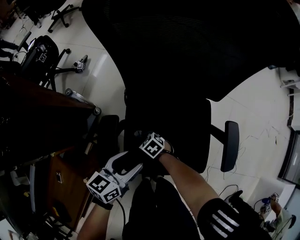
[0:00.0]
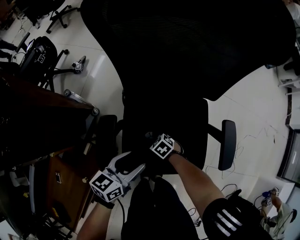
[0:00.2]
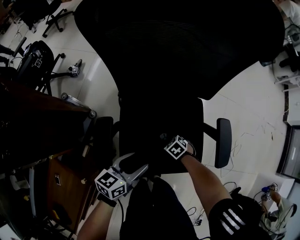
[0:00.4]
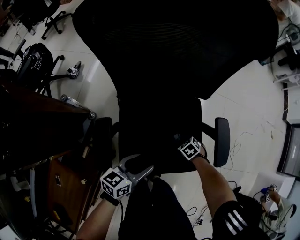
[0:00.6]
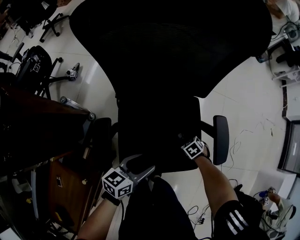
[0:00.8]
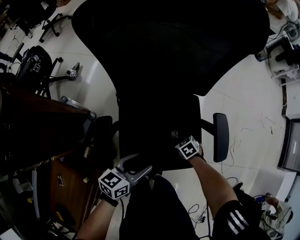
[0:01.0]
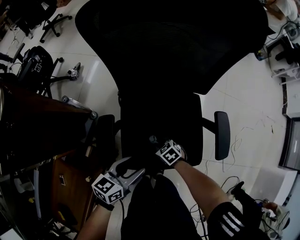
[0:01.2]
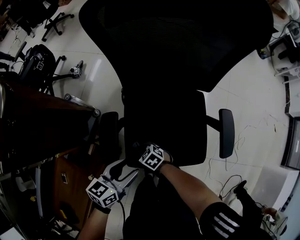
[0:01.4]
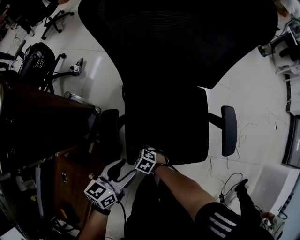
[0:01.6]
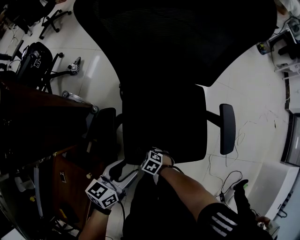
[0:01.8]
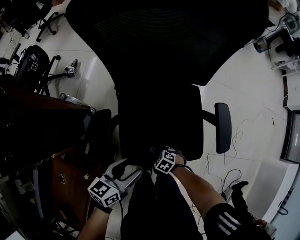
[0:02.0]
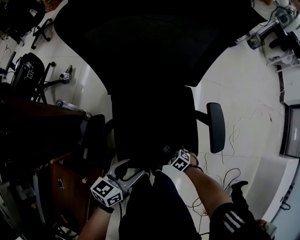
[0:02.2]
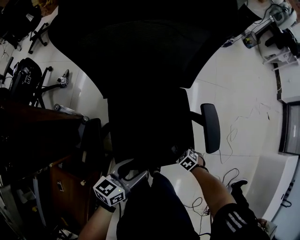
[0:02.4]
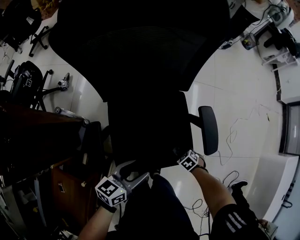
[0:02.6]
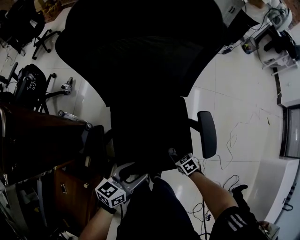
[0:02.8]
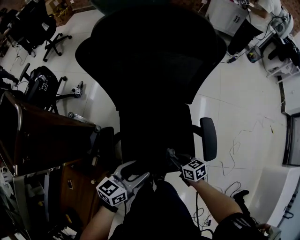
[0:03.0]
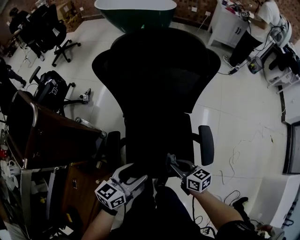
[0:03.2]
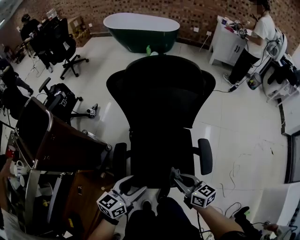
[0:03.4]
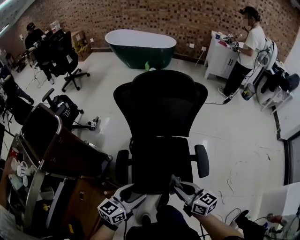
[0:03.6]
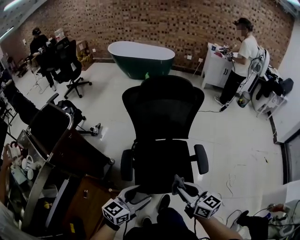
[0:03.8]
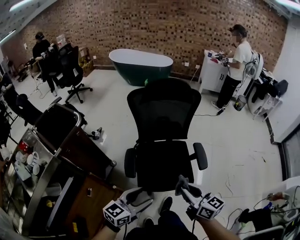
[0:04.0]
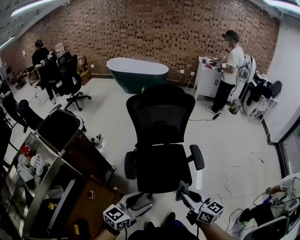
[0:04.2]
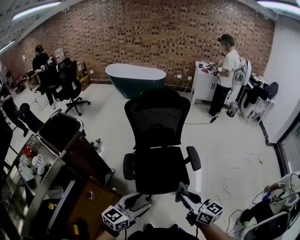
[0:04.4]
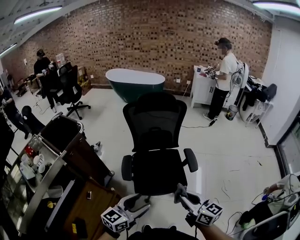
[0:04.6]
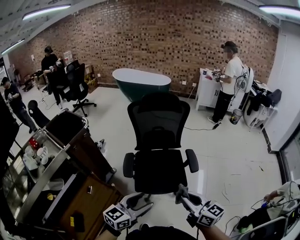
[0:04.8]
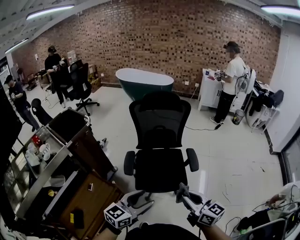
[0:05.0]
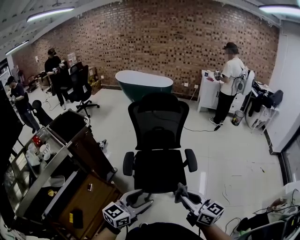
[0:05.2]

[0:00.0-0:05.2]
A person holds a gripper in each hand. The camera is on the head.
0:00.0 to 0:01.8: The left gripper moves roughly 10 cm.
0:01.8 to 0:03.4: The left gripper heads upward, covering some 20 cm, while the right gripper moves upward, roughly 40 cm, and tips its fingers upward by approximately 40 degrees.
0:03.4 to 0:05.2: Both grippers move backward and upward, approximately 40 cm. The left gripper swivels about 20 degrees. The right gripper changes its angle by about 20 degrees.

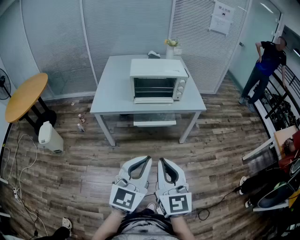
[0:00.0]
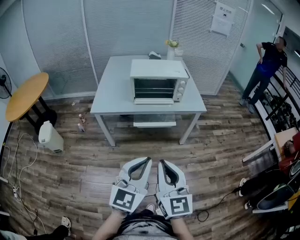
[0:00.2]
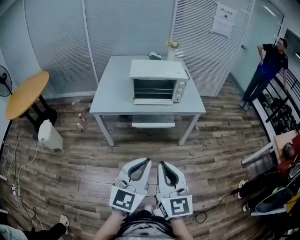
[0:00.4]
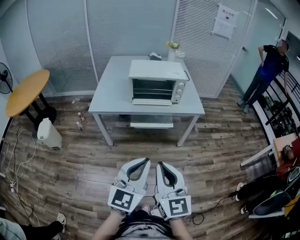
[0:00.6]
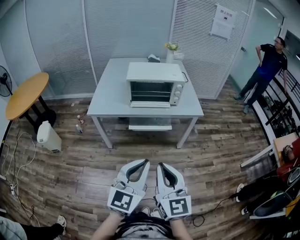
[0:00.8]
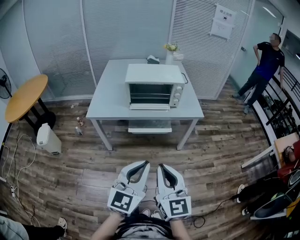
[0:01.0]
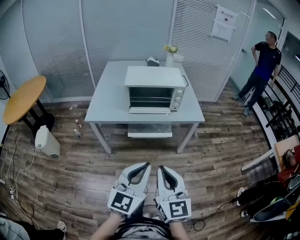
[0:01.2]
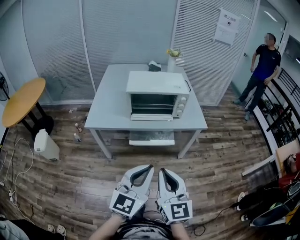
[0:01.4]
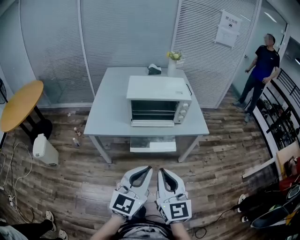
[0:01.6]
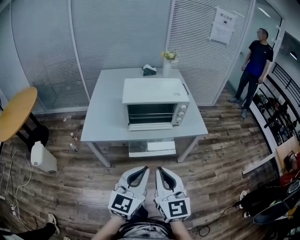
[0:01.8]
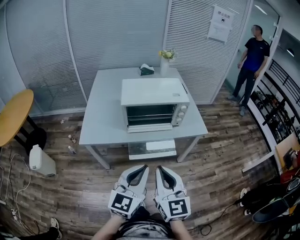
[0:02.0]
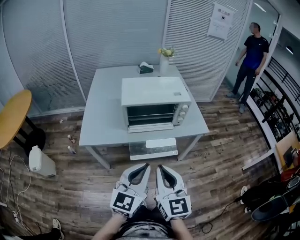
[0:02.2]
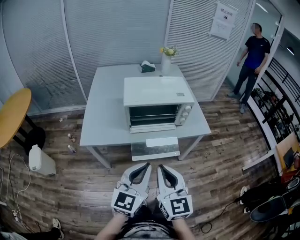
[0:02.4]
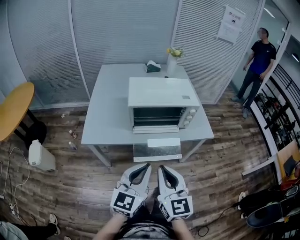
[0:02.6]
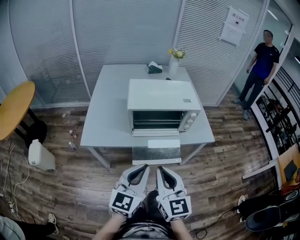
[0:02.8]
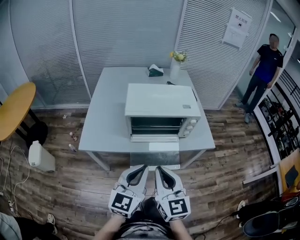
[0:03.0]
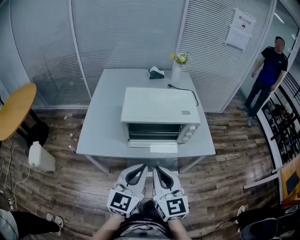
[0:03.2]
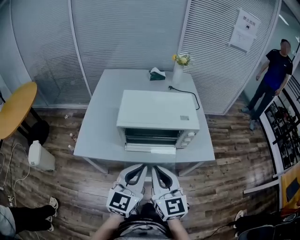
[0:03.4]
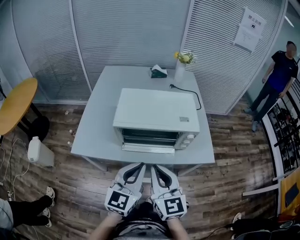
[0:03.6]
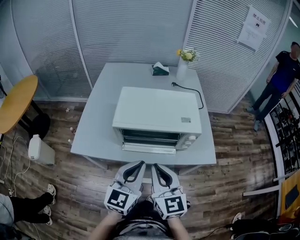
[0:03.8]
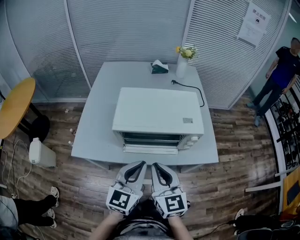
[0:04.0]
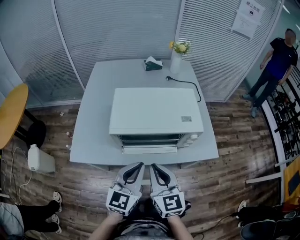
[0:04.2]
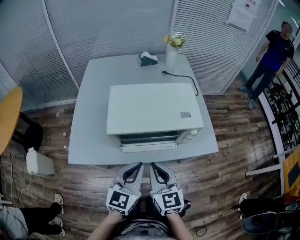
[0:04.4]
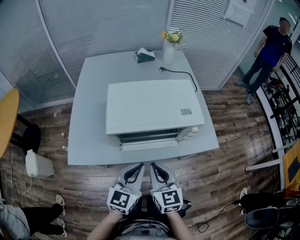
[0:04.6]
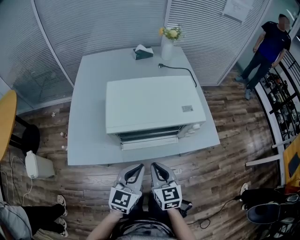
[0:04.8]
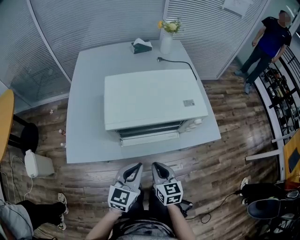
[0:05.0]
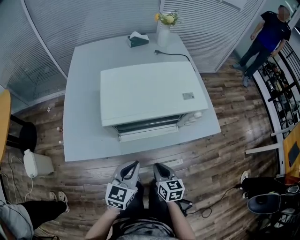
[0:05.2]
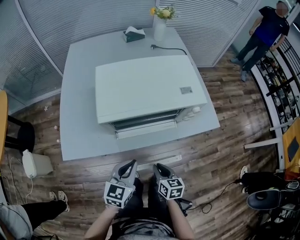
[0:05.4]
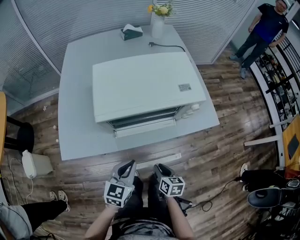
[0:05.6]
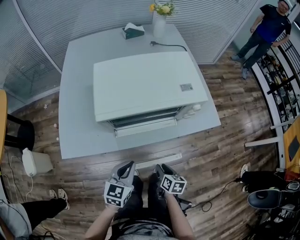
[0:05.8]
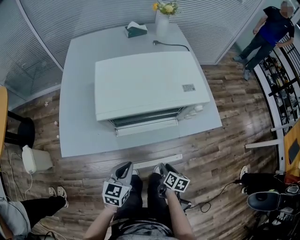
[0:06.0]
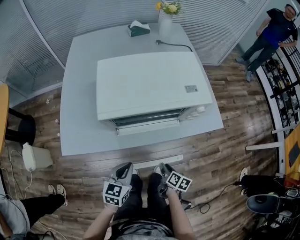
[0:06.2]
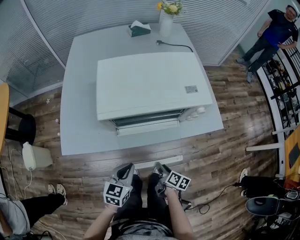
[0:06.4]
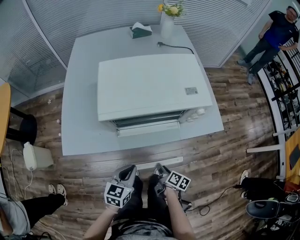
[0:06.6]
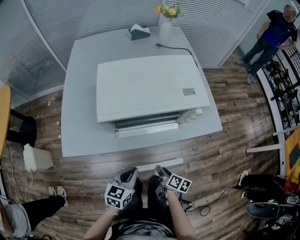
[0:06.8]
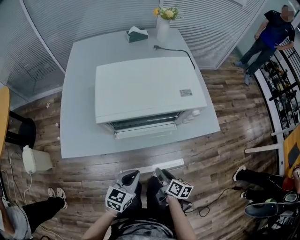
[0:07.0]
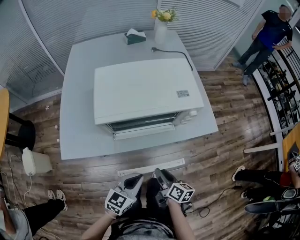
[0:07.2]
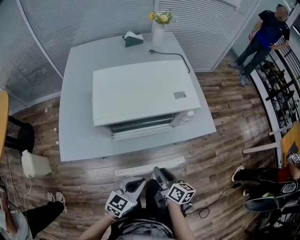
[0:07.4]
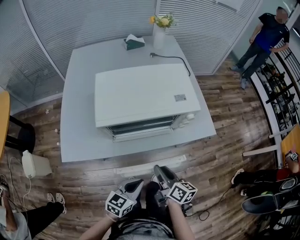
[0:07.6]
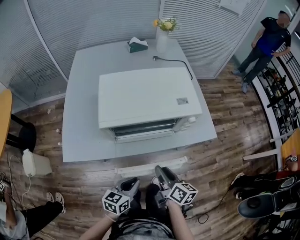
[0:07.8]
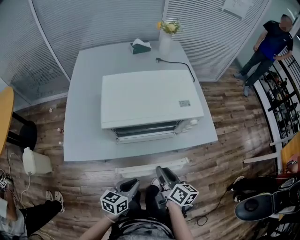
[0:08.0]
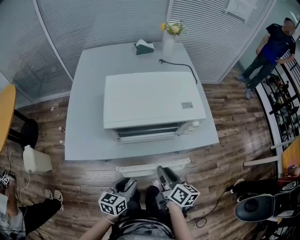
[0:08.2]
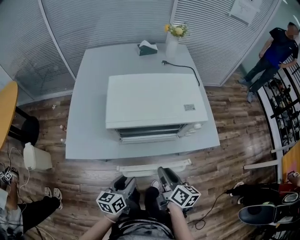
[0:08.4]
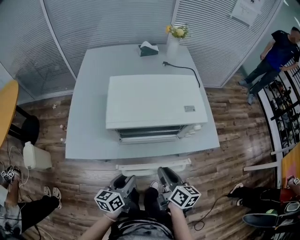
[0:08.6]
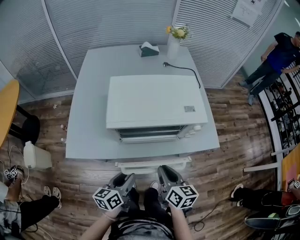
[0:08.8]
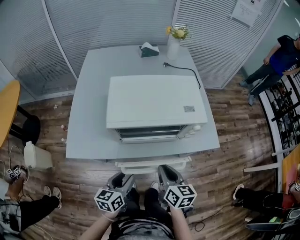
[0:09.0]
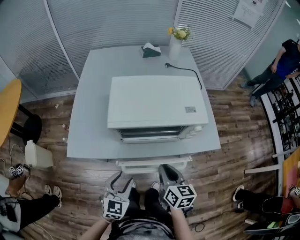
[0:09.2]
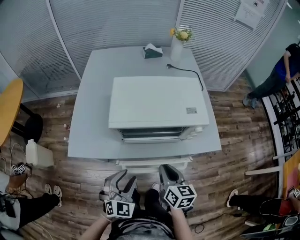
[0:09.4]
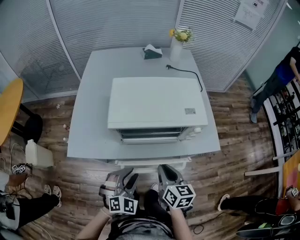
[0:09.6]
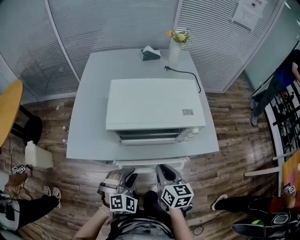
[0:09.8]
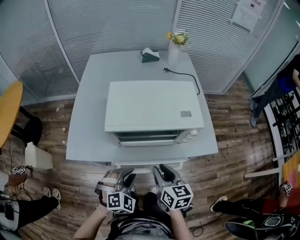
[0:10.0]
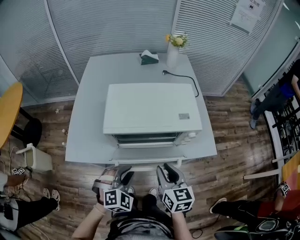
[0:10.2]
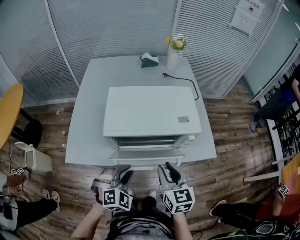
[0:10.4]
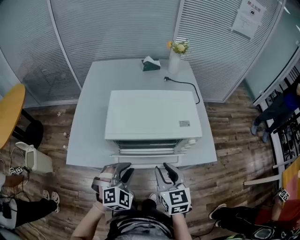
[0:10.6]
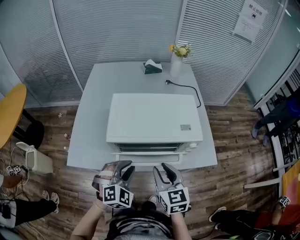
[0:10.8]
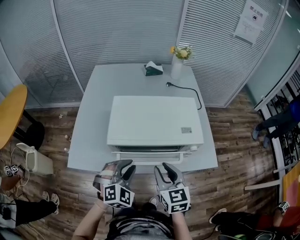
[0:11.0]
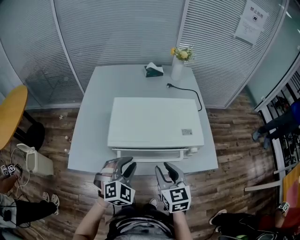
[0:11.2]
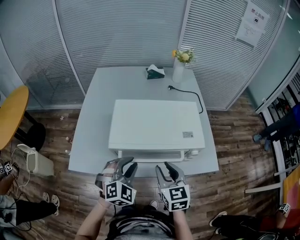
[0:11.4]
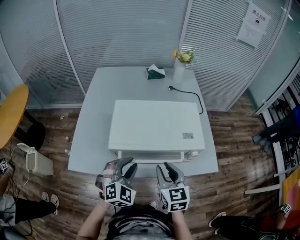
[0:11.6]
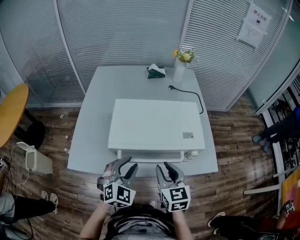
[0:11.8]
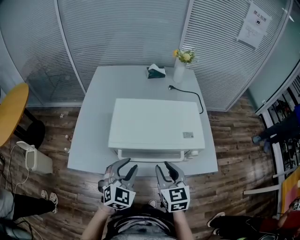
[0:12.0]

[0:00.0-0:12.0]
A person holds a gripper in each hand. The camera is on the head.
0:00.0 to 0:01.6: Both grippers travel together forward, about 15 cm.
0:01.6 to 0:03.0: The grippers both shift forward by about 15 cm.
0:03.0 to 0:04.4: The left gripper is displaced forward by about 15 cm; the right gripper is displaced forward and downward by approximately 20 cm.
0:04.4 to 0:06.0: The left gripper goes some 15 cm downward, and rotates some 20 degrees. The right gripper heads downward, covering about 30 cm, rolls clockwise, seen from behind, by approximately 50 degrees, and opens.
0:06.0 to 0:07.6: The left gripper goes roughly 10 cm to the right, while the right gripper goes some 20 cm upward, and changes its angle by roughly 30 degrees.
0:07.6 to 0:09.0: The right gripper ends up about 5 cm from where it was, and rotates some 20 degrees. The left gripper shifts roughly 10 cm to the left, changes its angle by approximately 30 degrees, and opens.
0:09.0 to 0:10.4: The right gripper is displaced upward by approximately 5 cm, and rotates about 20 degrees; the left gripper is displaced upward and forward by roughly 10 cm, and rolls clockwise, seen from behind, by roughly 70 degrees.
0:10.4 to 0:12.0: Both grippers move forward, some 5 cm. The left gripper rotates some 20 degrees.

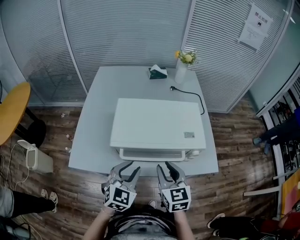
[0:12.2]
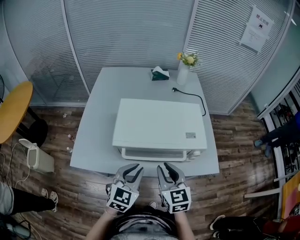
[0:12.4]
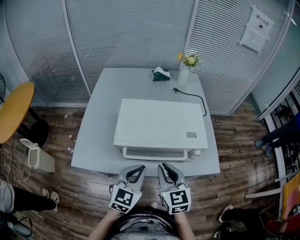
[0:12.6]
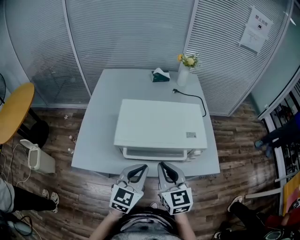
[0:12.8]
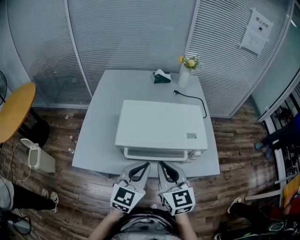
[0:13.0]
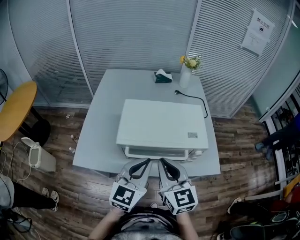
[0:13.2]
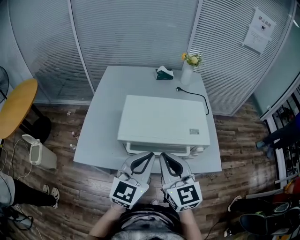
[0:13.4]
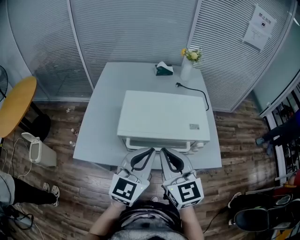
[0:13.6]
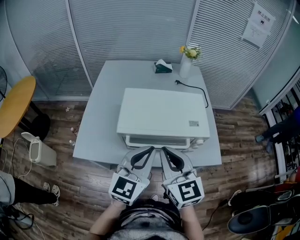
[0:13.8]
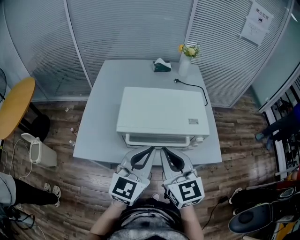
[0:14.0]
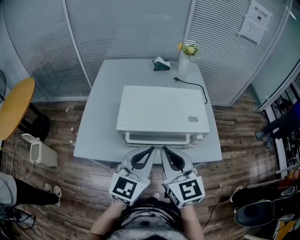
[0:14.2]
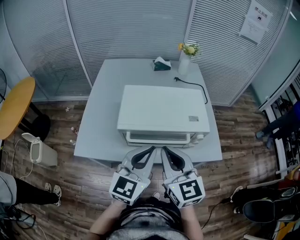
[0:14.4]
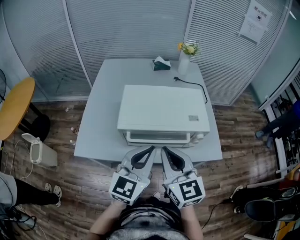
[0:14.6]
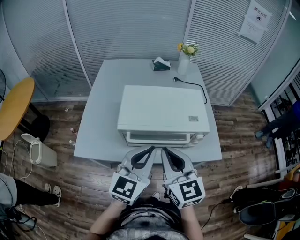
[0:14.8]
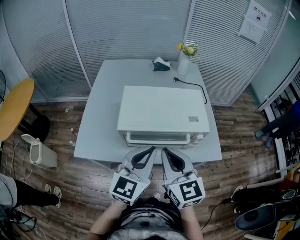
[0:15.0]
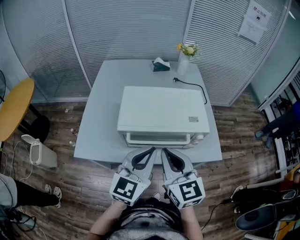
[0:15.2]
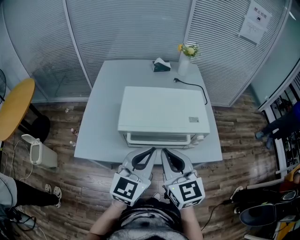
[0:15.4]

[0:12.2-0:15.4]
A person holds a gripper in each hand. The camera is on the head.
0:12.2 to 0:13.8: Both grippers travel together upward, about 10 cm. The right gripper closes. The left gripper turns by some 20 degrees, and closes.
0:13.8 to 0:15.4: The grippers stay close to where they were, moving slightly.

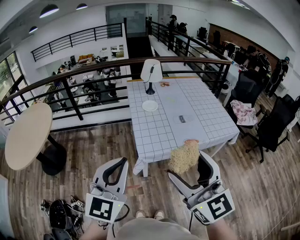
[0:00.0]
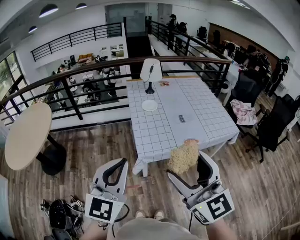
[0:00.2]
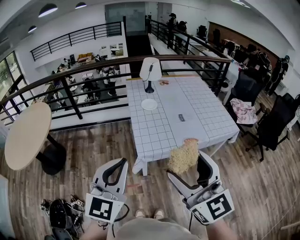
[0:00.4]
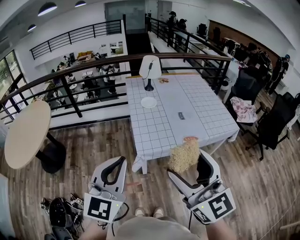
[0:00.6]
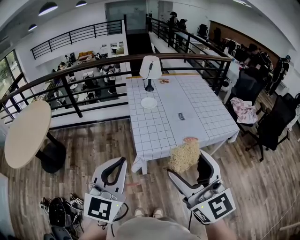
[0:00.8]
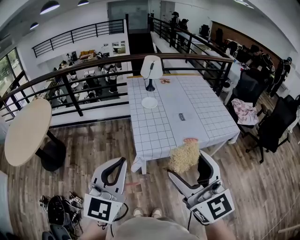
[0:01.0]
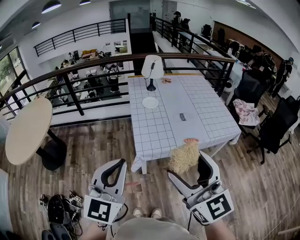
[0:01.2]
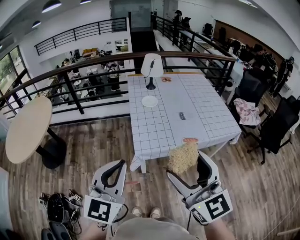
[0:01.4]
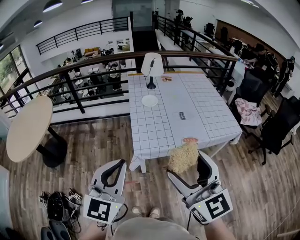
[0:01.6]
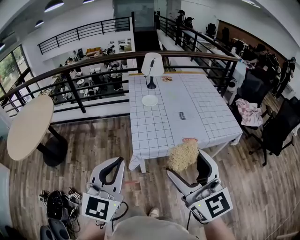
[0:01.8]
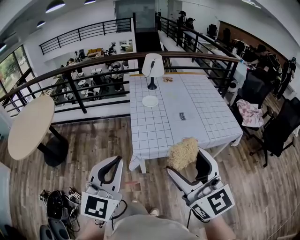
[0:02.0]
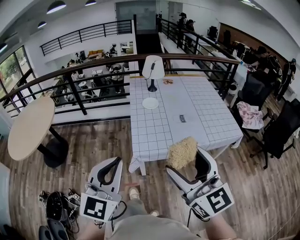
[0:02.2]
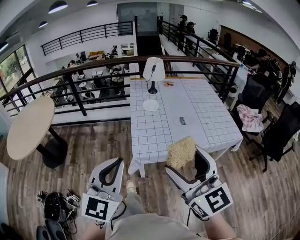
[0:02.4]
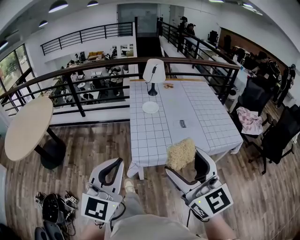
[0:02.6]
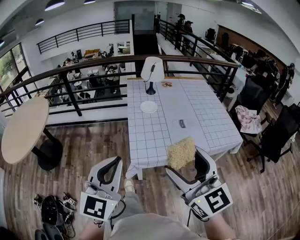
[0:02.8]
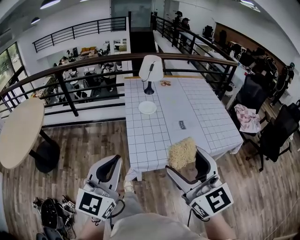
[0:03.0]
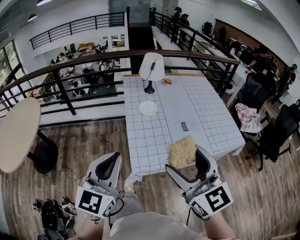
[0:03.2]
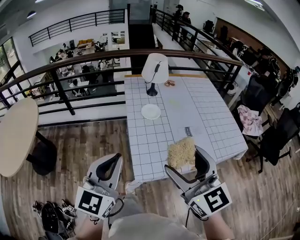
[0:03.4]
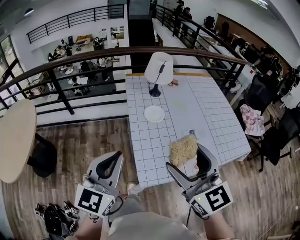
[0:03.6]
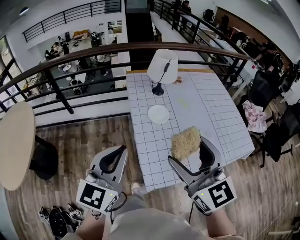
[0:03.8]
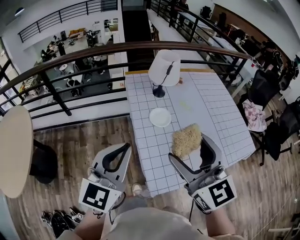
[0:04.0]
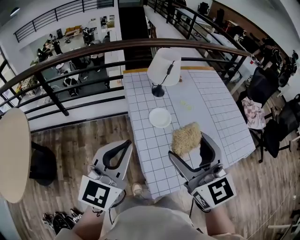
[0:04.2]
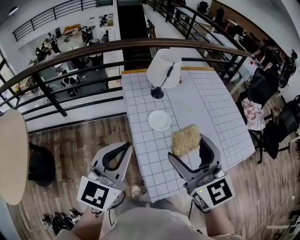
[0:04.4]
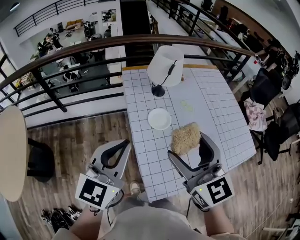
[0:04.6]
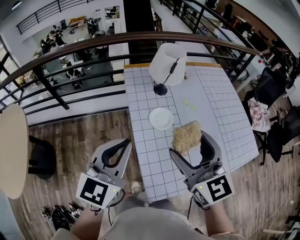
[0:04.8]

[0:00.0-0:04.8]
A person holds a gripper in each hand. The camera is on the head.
0:00.0 to 0:01.6: The right gripper moves to the right, approximately 5 cm.
0:01.6 to 0:03.2: The grippers both shift forward by roughly 20 cm.
0:03.2 to 0:04.8: Both grippers travel together forward, some 30 cm.
